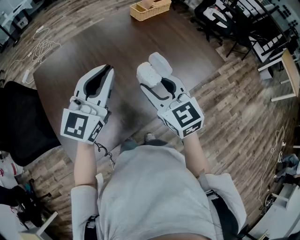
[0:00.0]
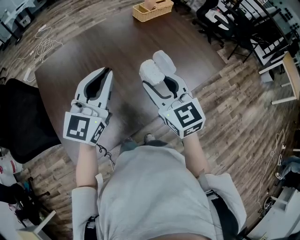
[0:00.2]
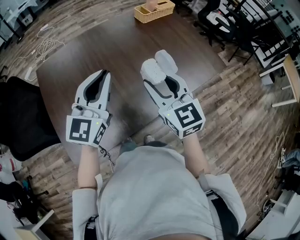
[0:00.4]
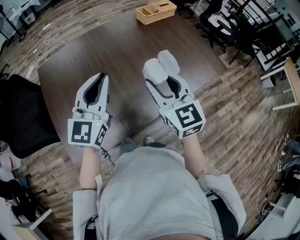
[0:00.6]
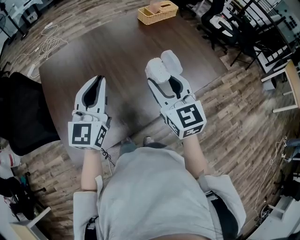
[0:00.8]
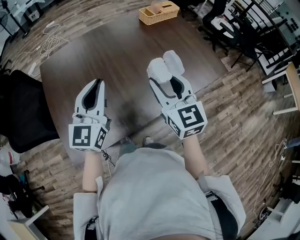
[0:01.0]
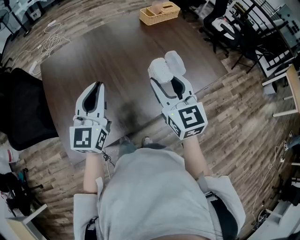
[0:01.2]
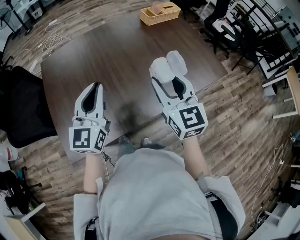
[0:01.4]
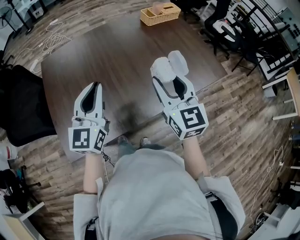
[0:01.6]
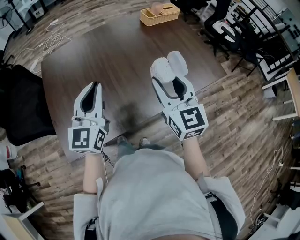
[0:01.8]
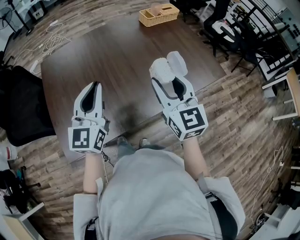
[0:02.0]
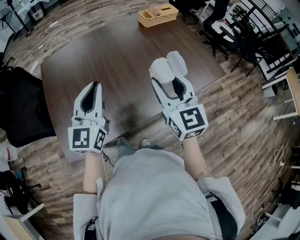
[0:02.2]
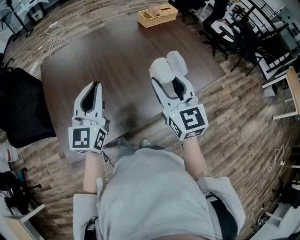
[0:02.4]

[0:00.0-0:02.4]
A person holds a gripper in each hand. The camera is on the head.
0:00.0 to 0:01.2: The left gripper changes place by roughly 5 cm, and changes its angle by some 20 degrees.
0:01.2 to 0:02.4: The grippers move only a little.

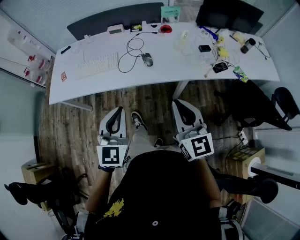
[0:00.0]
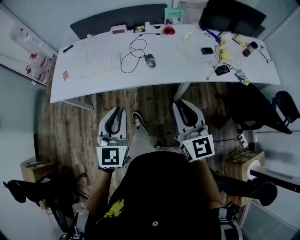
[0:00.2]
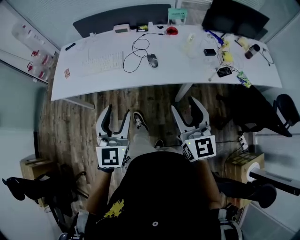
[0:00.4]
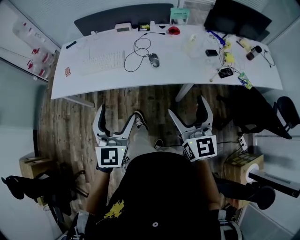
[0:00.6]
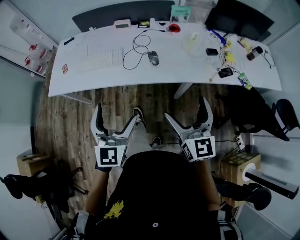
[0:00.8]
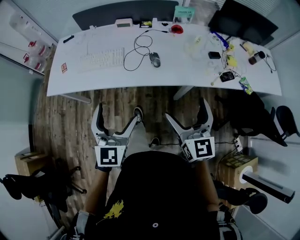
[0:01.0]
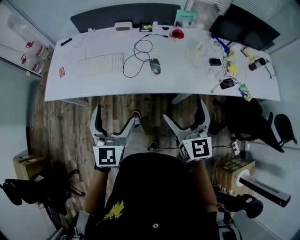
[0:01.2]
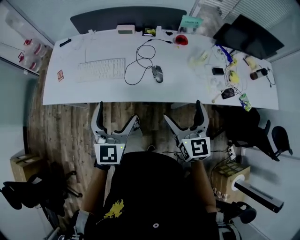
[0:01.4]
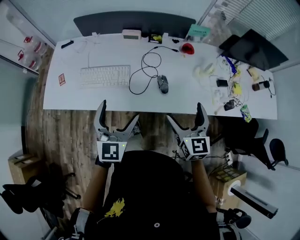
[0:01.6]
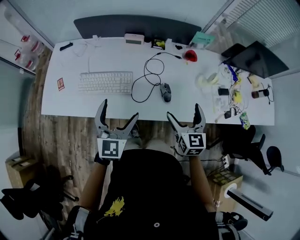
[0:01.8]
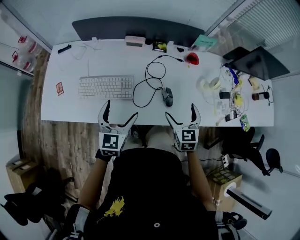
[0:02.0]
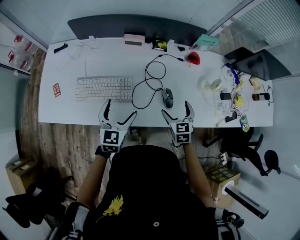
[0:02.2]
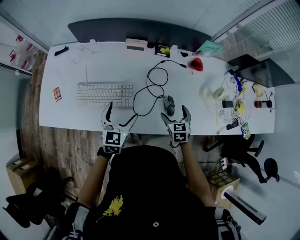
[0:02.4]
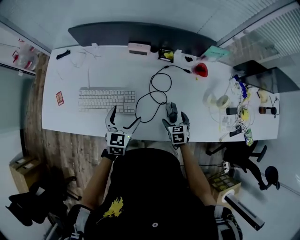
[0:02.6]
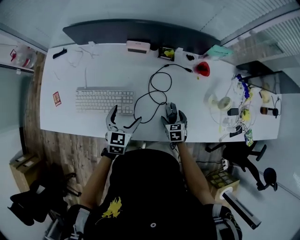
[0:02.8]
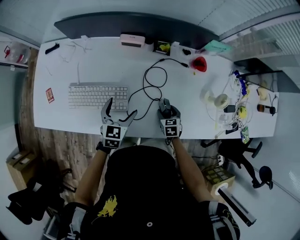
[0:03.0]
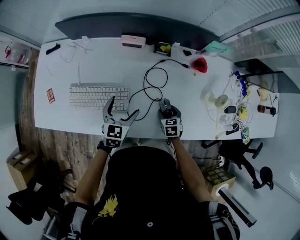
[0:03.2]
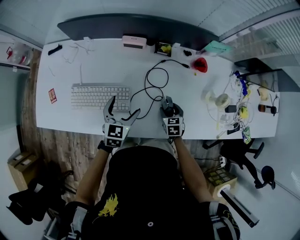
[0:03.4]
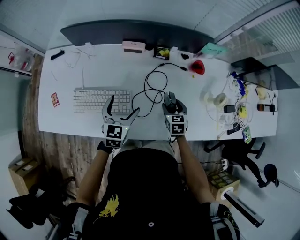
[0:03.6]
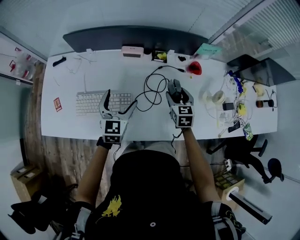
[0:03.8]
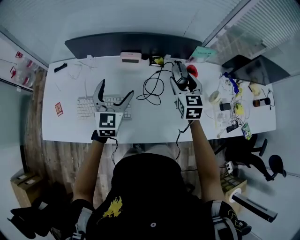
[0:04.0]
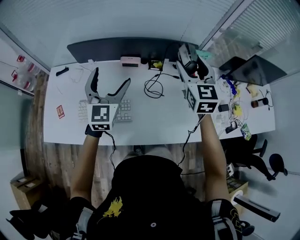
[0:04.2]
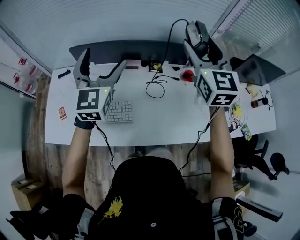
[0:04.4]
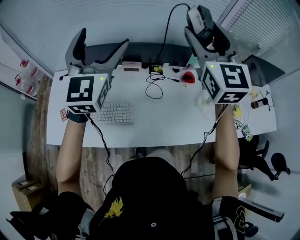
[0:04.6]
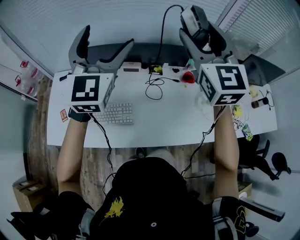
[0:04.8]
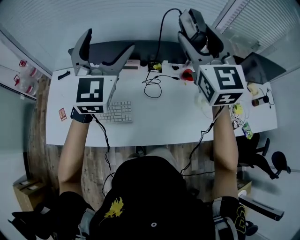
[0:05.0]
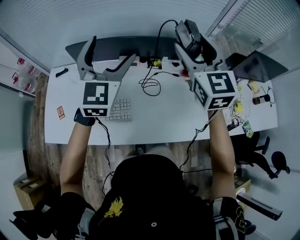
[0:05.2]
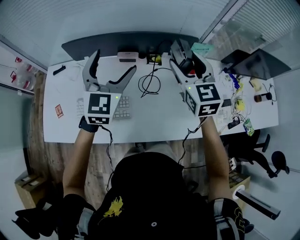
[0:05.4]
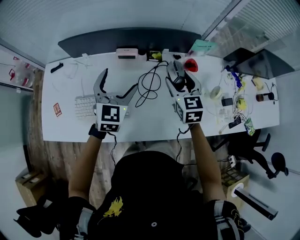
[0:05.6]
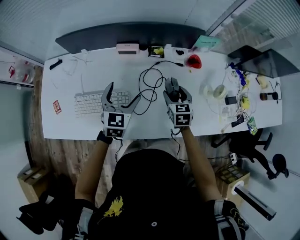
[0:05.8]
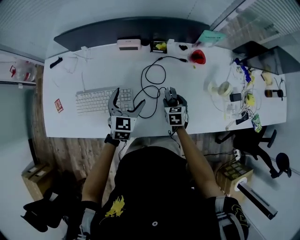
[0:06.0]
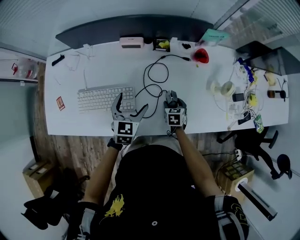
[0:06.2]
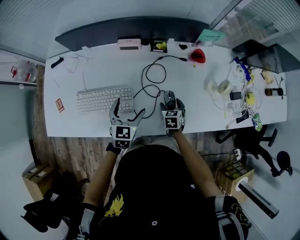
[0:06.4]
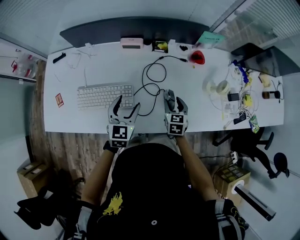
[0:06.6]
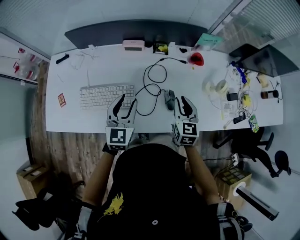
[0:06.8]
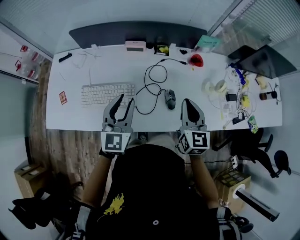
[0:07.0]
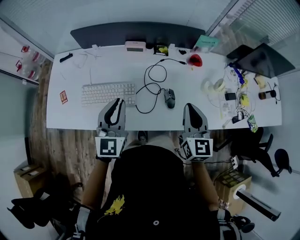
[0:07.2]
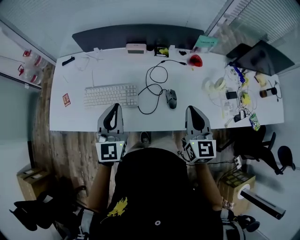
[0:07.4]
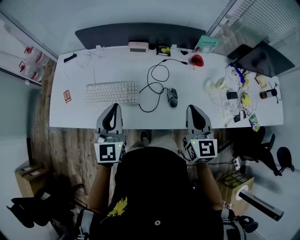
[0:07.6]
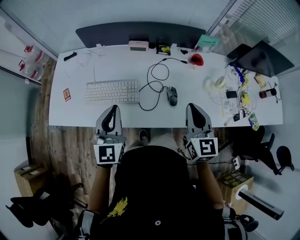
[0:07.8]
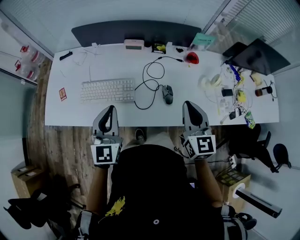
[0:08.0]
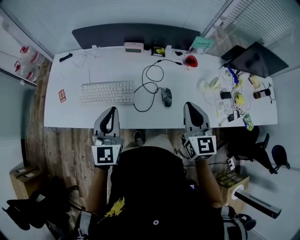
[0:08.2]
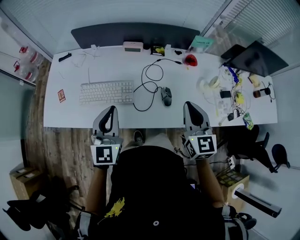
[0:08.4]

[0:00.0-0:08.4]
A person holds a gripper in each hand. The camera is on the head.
0:00.0 to 0:01.4: The two grippers go roughly 20 cm forward. The left gripper opens; the right gripper opens up.
0:01.4 to 0:02.8: The right gripper travels downward and forward by roughly 50 cm, and angles its fingers downward, by approximately 40 degrees; the left gripper heads forward and downward, covering roughly 40 cm, and turns by about 30 degrees.
0:02.8 to 0:04.2: The left gripper goes some 25 cm upward, and swivels some 30 degrees; the right gripper moves upward, about 40 cm, and tilts its fingers approximately 50 degrees upward.
0:04.2 to 0:05.6: The left gripper shifts some 5 cm to the right, and moves some 20 cm upward and comes back; the right gripper travels downward by roughly 15 cm.
0:05.6 to 0:07.0: Both grippers travel together backward, approximately 15 cm. The right gripper moves about 30 cm downward and comes back, and closes up; the left gripper goes downward and returns, about 15 cm each way, and closes up.
0:07.0 to 0:08.4: The right gripper heads backward and upward, covering about 10 cm; the left gripper moves backward, about 10 cm.

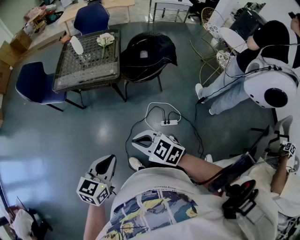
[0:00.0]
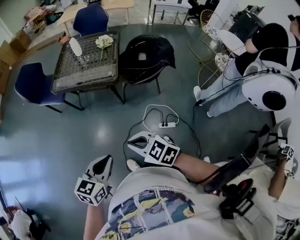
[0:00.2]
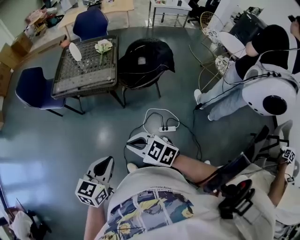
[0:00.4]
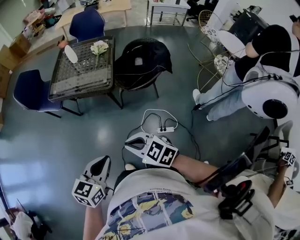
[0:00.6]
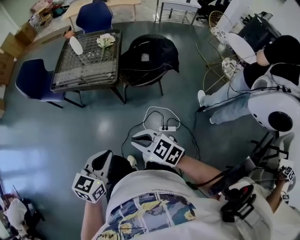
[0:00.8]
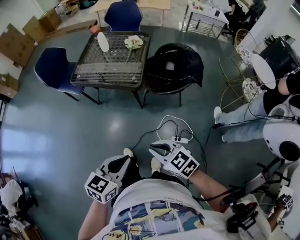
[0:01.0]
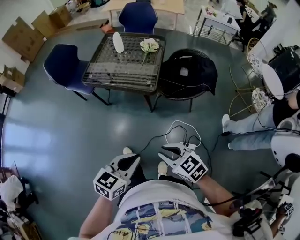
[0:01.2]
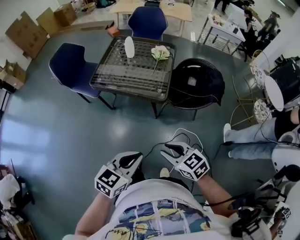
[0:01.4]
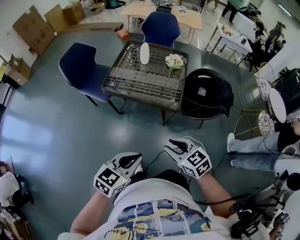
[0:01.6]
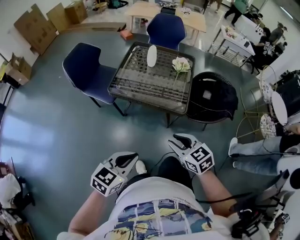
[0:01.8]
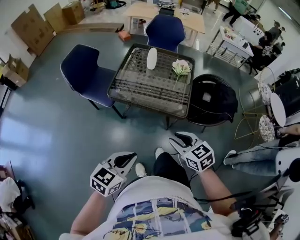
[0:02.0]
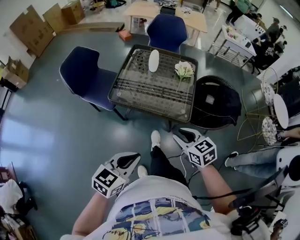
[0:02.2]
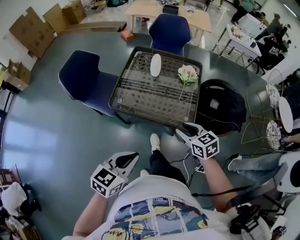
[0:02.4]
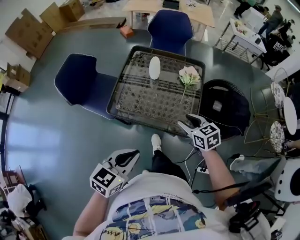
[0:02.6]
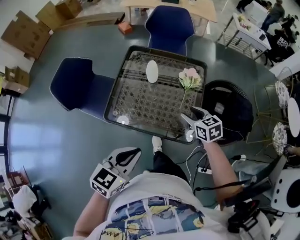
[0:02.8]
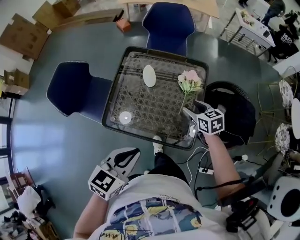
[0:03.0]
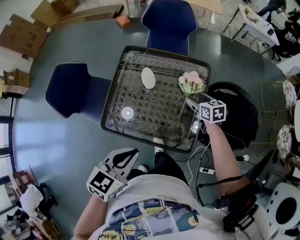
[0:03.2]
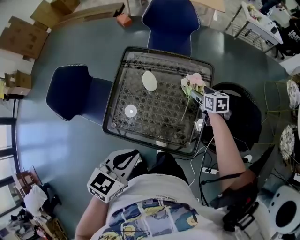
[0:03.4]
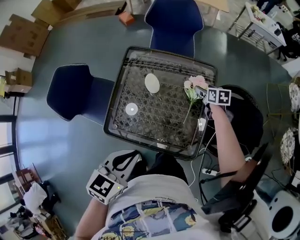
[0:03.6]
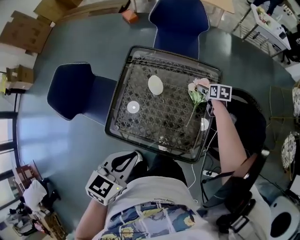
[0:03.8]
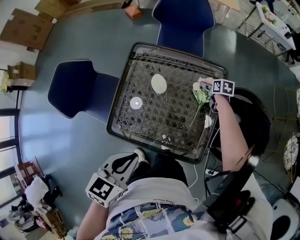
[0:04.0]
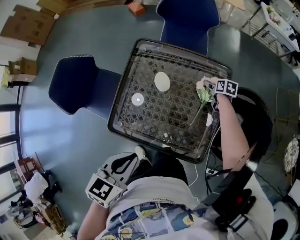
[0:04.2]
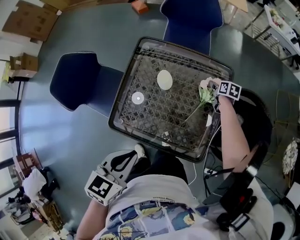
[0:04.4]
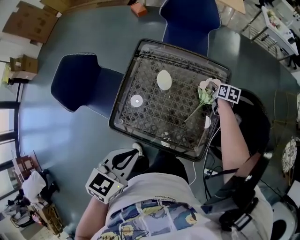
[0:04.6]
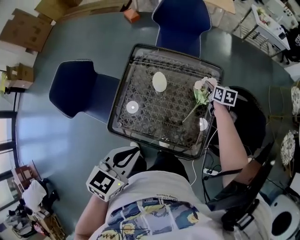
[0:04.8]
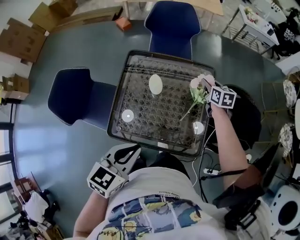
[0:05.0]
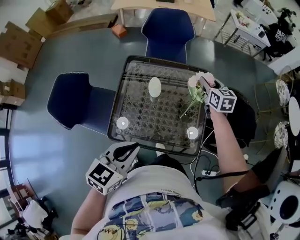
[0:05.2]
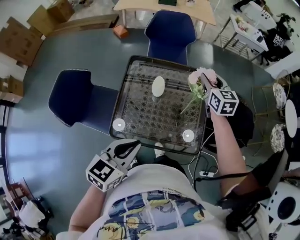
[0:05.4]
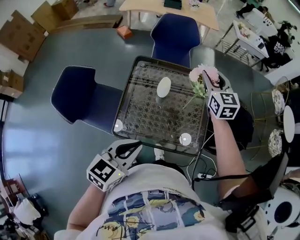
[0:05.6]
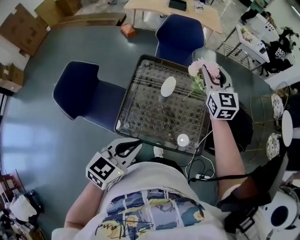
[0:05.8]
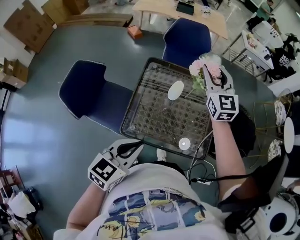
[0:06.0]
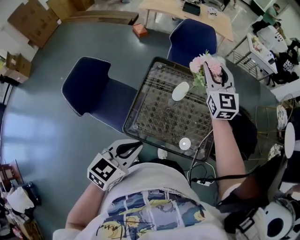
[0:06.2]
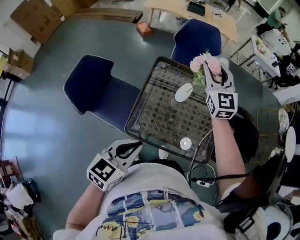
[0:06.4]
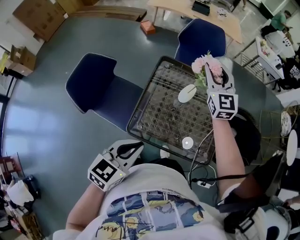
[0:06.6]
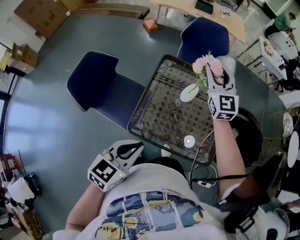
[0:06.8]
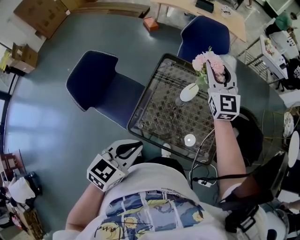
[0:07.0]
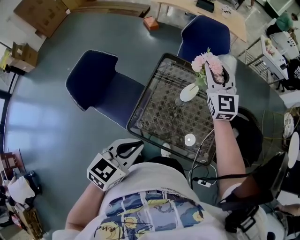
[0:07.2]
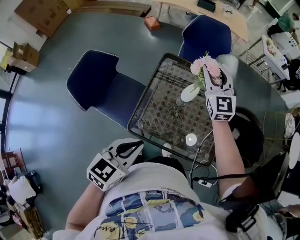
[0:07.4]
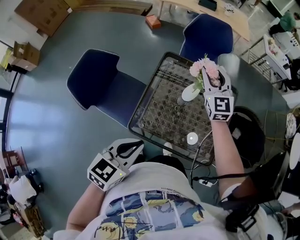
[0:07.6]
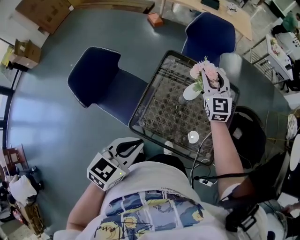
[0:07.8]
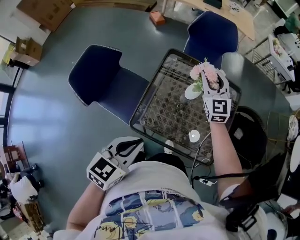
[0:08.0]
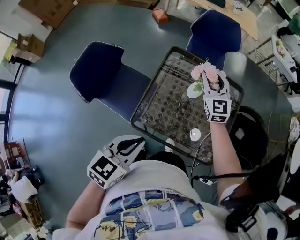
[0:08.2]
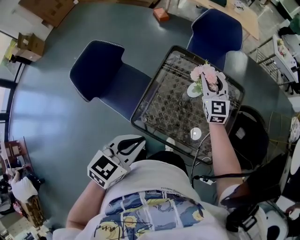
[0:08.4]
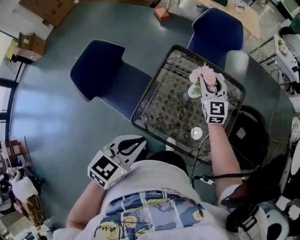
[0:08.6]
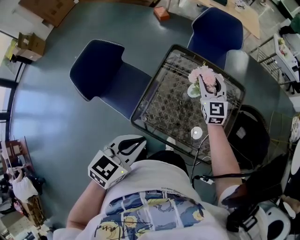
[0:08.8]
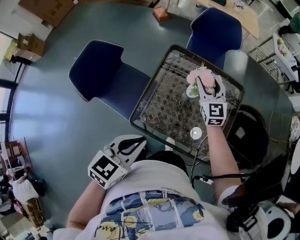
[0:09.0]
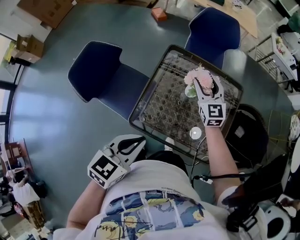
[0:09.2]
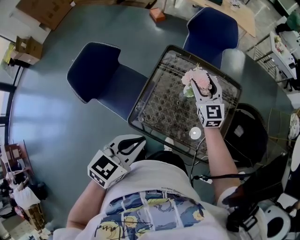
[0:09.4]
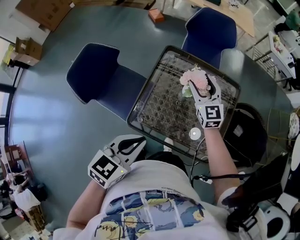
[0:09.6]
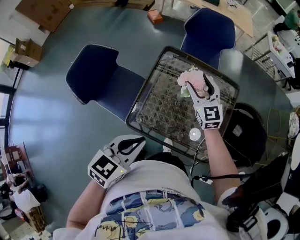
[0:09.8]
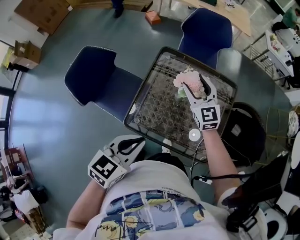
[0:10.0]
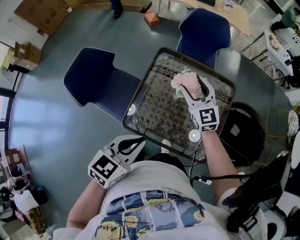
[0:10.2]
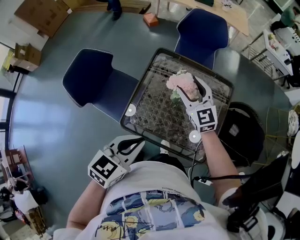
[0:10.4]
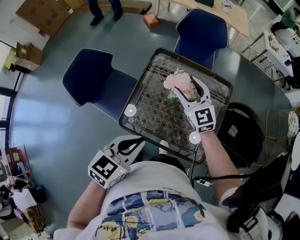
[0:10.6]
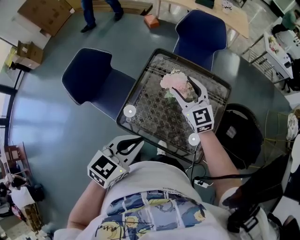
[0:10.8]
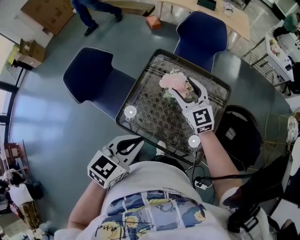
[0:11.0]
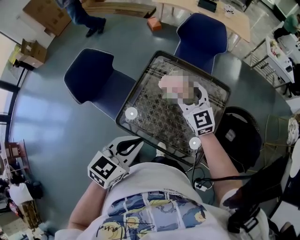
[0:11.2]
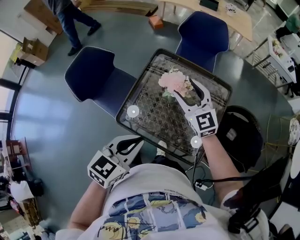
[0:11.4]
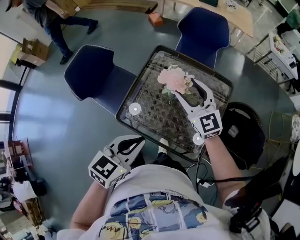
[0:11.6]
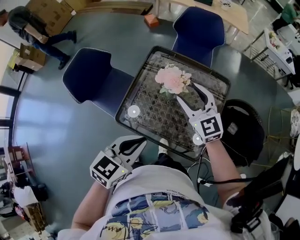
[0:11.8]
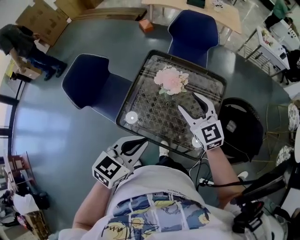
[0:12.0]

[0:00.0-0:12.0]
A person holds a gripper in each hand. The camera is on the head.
0:00.0 to 0:01.6: The right gripper travels forward by roughly 20 cm, while the left gripper shifts approximately 25 cm forward and to the left.
0:01.6 to 0:03.0: Both grippers move forward, roughly 40 cm. The right gripper changes its angle by some 20 degrees.
0:03.0 to 0:04.4: The left gripper travels forward by some 10 cm. Meanwhile the right gripper moves forward and downward, roughly 30 cm, changes its angle by approximately 30 degrees, and opens, then closes once more.
0:04.4 to 0:06.0: The right gripper heads upward and to the left, covering roughly 50 cm, and tilts its fingers some 50 degrees upward; the left gripper moves to the left, upward and backward, some 15 cm, and changes its angle by about 20 degrees.
0:06.0 to 0:07.6: The right gripper heads downward and to the left, covering roughly 10 cm.
0:07.6 to 0:09.0: The right gripper goes approximately 10 cm downward.
0:09.0 to 0:10.4: The right gripper shifts roughly 5 cm backward. Meanwhile the left gripper heads to the right, covering approximately 5 cm.
0:10.4 to 0:12.0: The right gripper goes roughly 10 cm backward and to the right; the left gripper travels to the right by some 5 cm.
